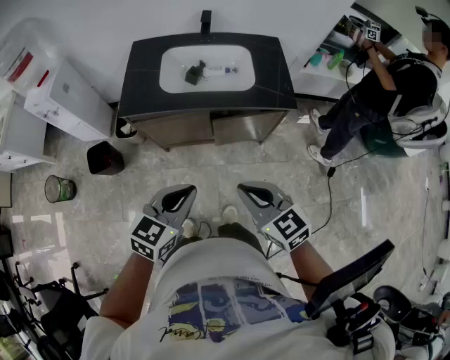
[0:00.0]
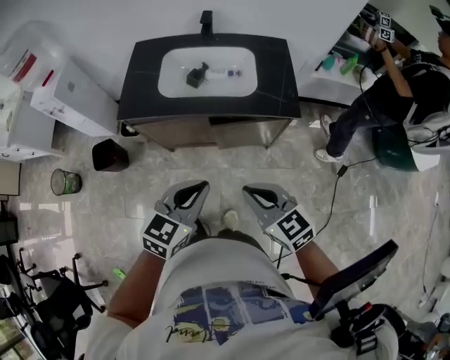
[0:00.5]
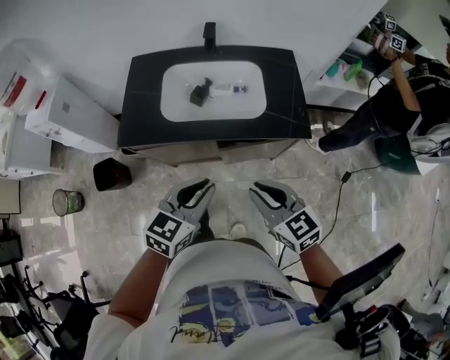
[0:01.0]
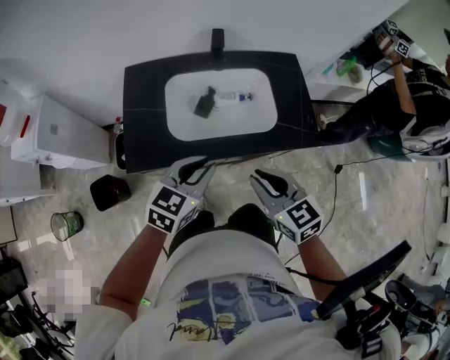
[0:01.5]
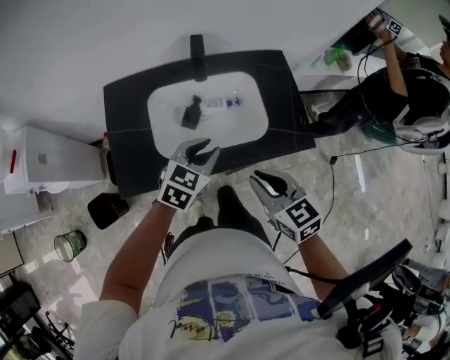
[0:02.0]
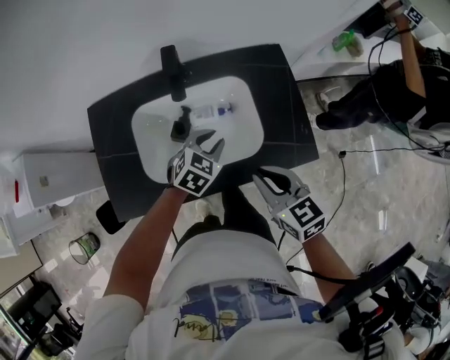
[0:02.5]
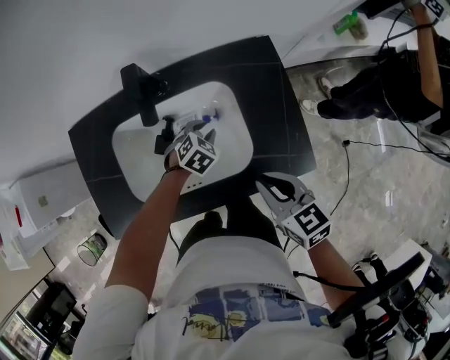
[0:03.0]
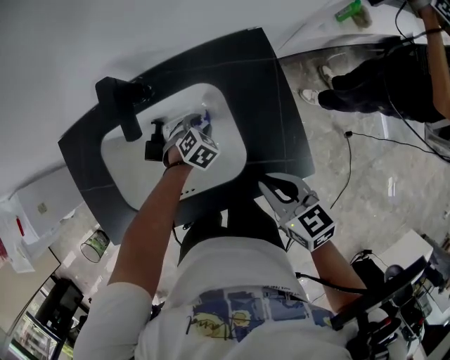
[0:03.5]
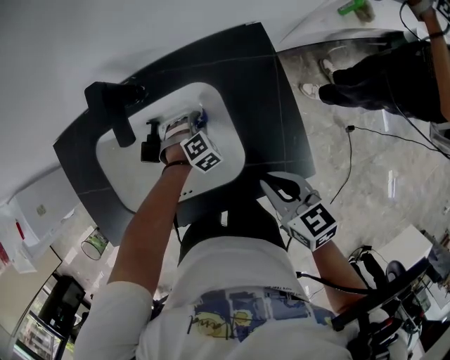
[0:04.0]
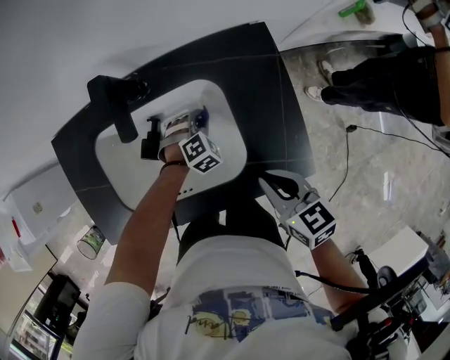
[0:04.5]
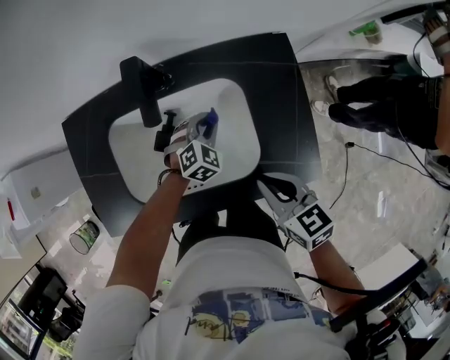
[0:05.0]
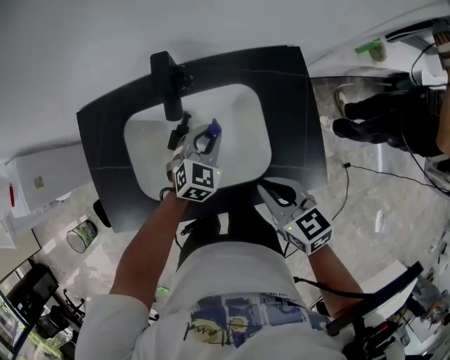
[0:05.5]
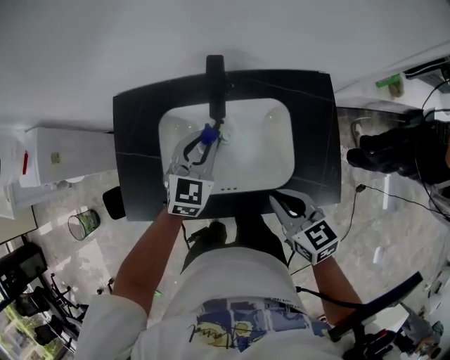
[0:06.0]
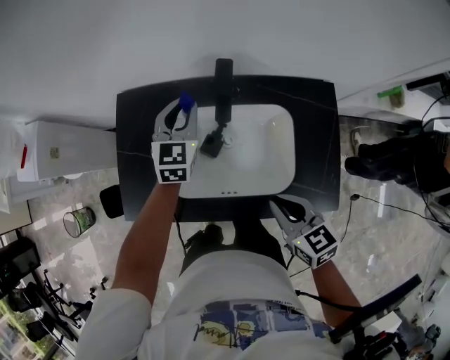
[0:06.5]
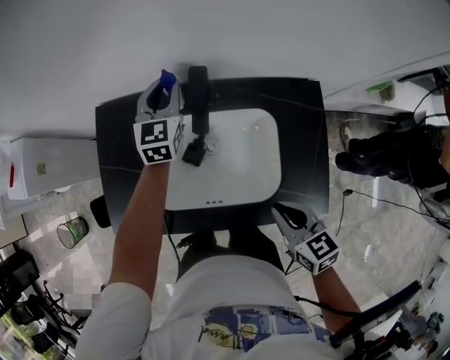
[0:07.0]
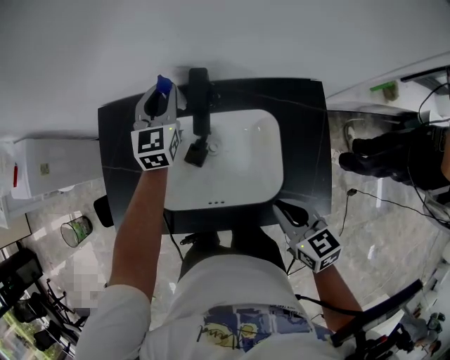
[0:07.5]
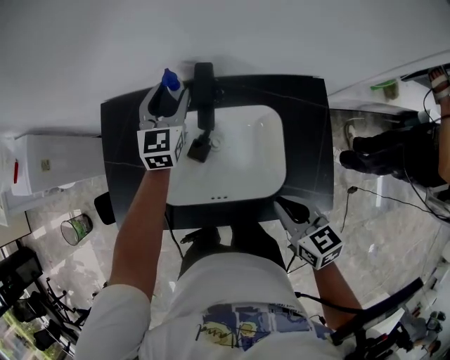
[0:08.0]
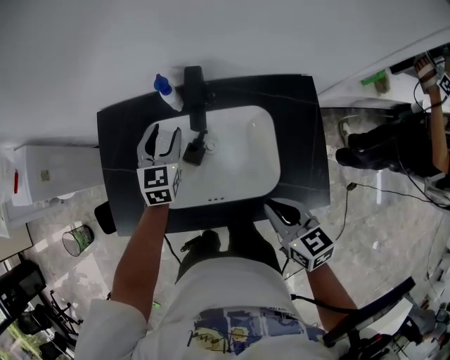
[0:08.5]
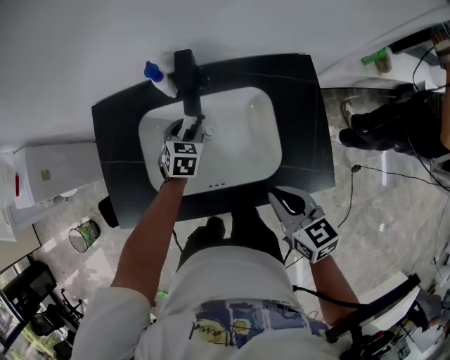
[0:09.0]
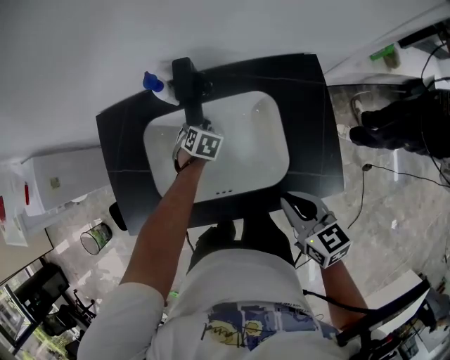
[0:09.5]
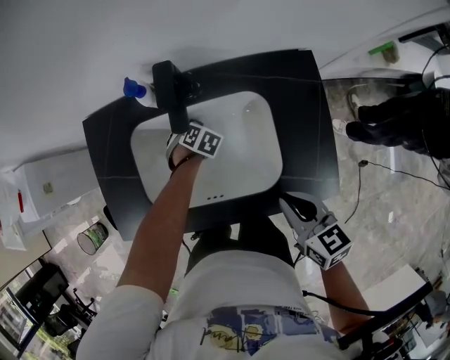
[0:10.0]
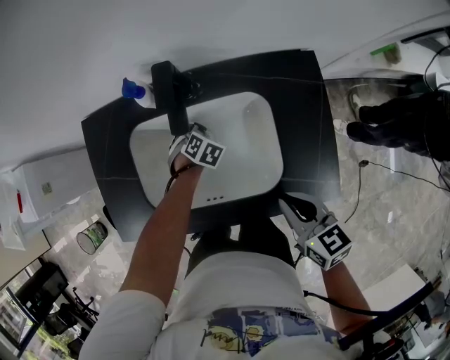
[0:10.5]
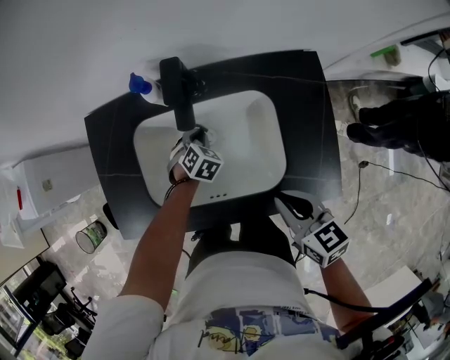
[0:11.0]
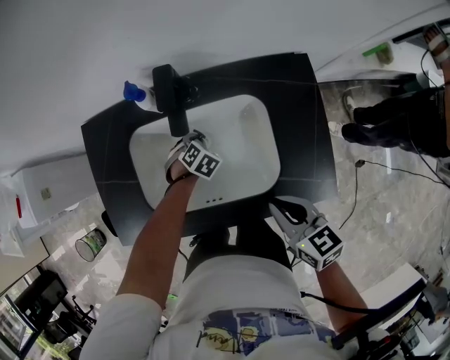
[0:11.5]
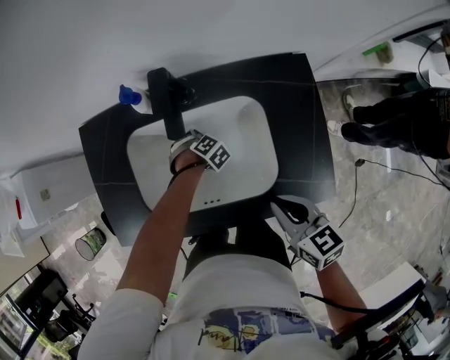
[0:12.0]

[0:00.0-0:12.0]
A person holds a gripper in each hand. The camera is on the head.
0:00.0 to 0:02.0: Both grippers travel together forward, approximately 35 cm. The left gripper opens its fingers, while the right gripper changes its angle by some 20 degrees.
0:02.0 to 0:04.0: The right gripper moves to the right, forward and downward, approximately 25 cm, and rotates some 20 degrees. The left gripper shifts some 40 cm downward, forward and to the right, and angles its fingers downward, by approximately 40 degrees.
0:04.0 to 0:06.0: The right gripper goes about 10 cm to the left; the left gripper travels upward and to the left by approximately 30 cm, and tilts its fingers about 40 degrees upward.
0:06.0 to 0:08.0: The left gripper heads forward, covering approximately 15 cm, and opens its fingers.
0:08.0 to 0:10.0: The left gripper moves downward, roughly 25 cm, and points its fingers about 60 degrees further downward.
0:10.0 to 0:12.0: The left gripper ends up about 5 cm from where it was, and turns by approximately 20 degrees.

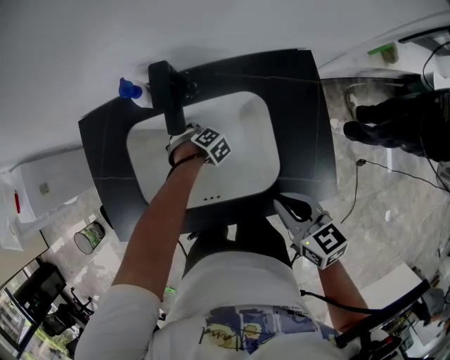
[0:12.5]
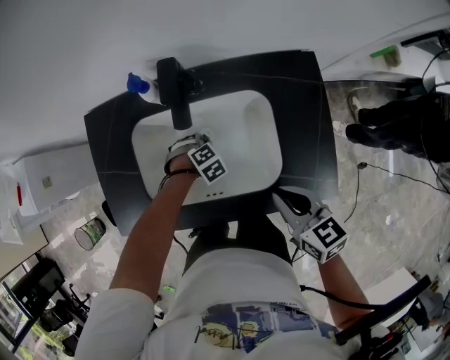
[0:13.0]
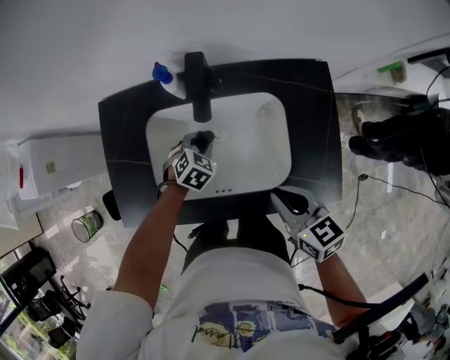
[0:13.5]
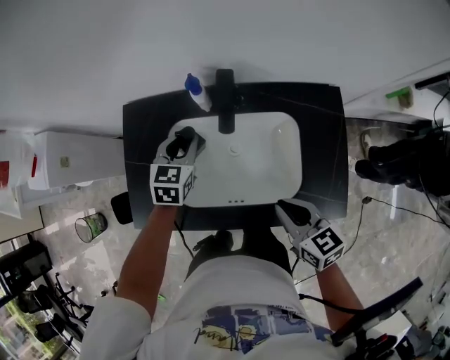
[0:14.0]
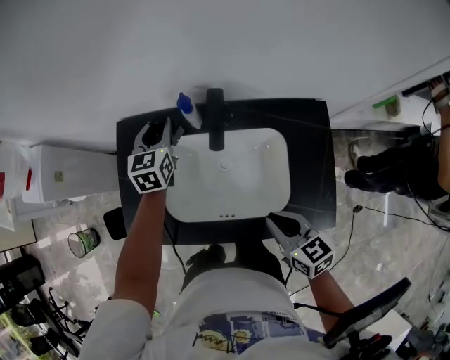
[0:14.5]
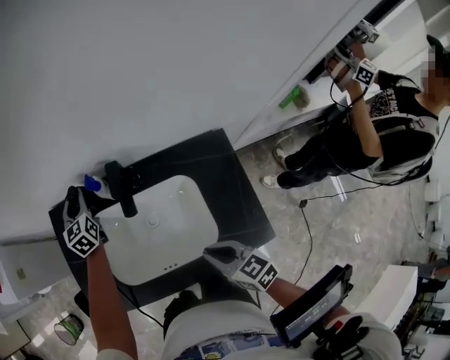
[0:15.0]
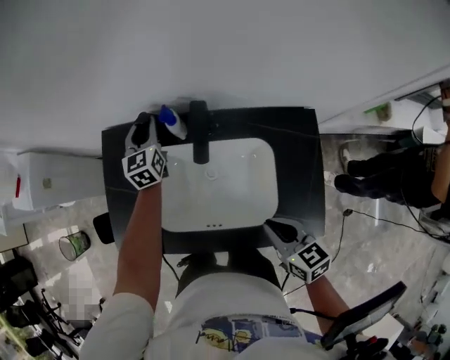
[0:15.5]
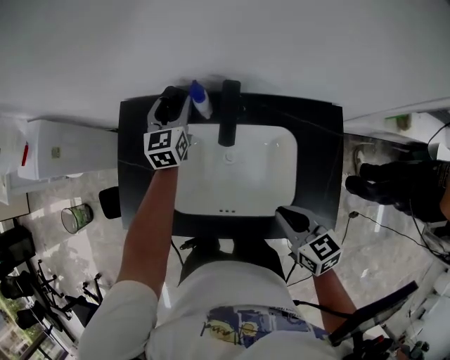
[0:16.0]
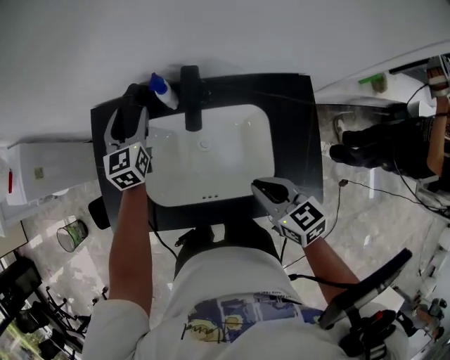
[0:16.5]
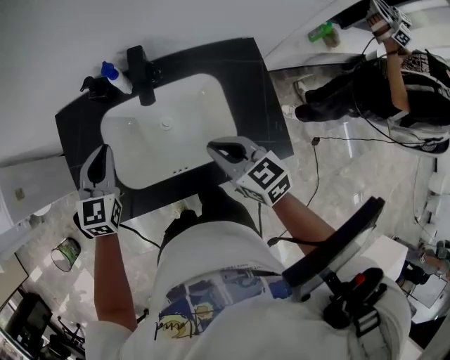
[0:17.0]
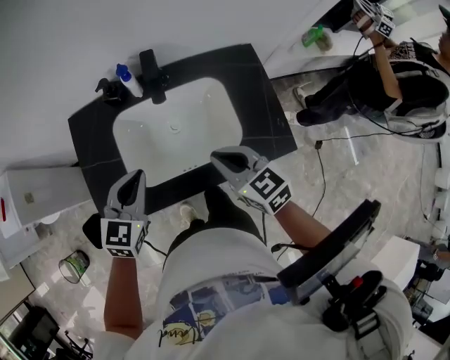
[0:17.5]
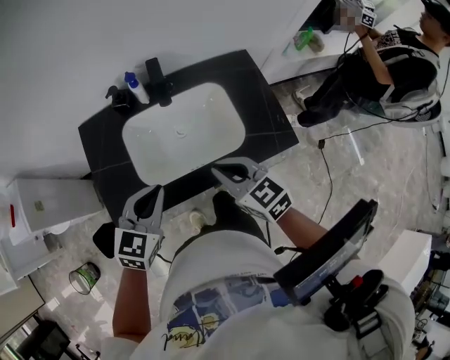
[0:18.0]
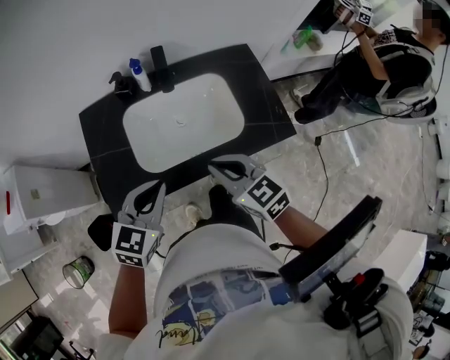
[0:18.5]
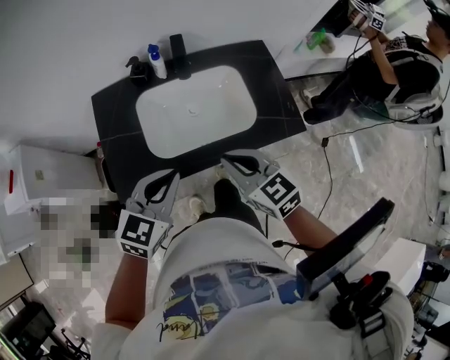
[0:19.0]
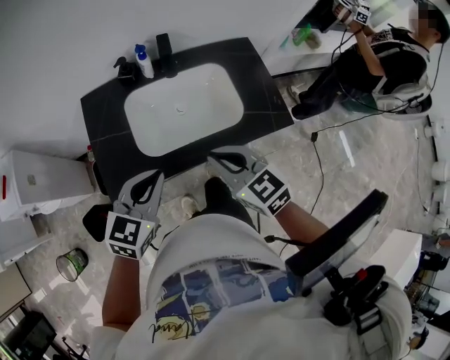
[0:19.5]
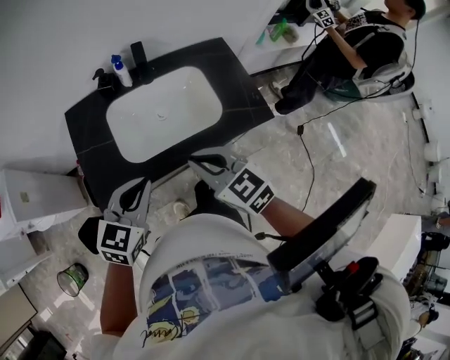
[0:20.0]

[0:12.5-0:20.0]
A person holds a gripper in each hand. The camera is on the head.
0:12.5 to 0:14.5: The left gripper goes about 30 cm upward, tilts its fingers approximately 60 degrees upward, and closes up, while the right gripper moves about 5 cm.
0:14.5 to 0:16.5: The left gripper opens its fingers.
0:16.5 to 0:18.0: The right gripper shifts by about 15 cm; the left gripper shifts by approximately 35 cm, swivels some 40 degrees, and closes up.
0:18.0 to 0:20.0: Both grippers travel together backward, some 10 cm.

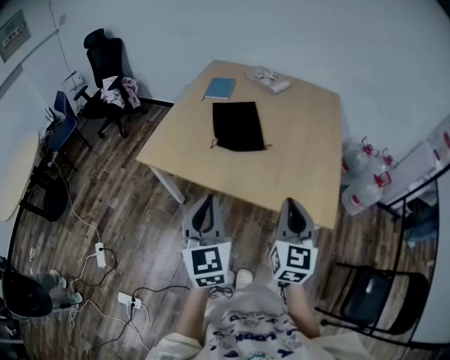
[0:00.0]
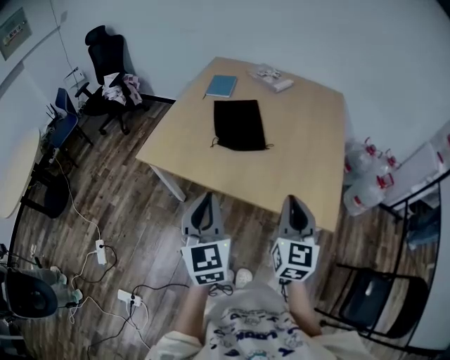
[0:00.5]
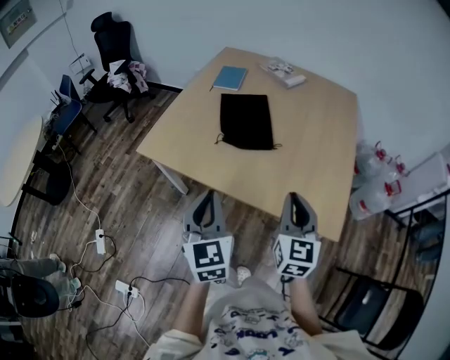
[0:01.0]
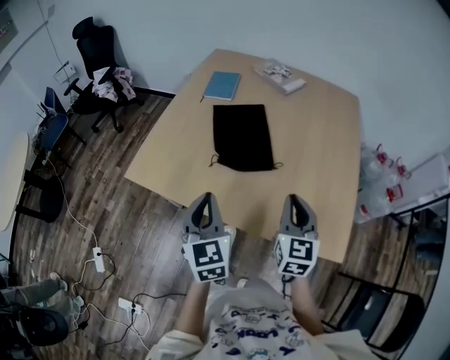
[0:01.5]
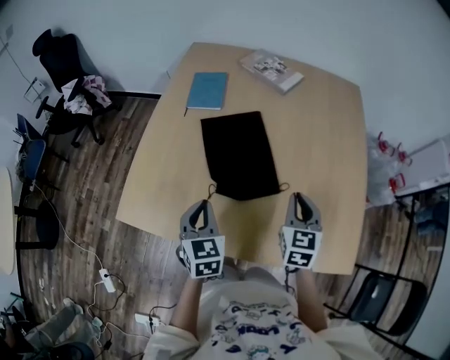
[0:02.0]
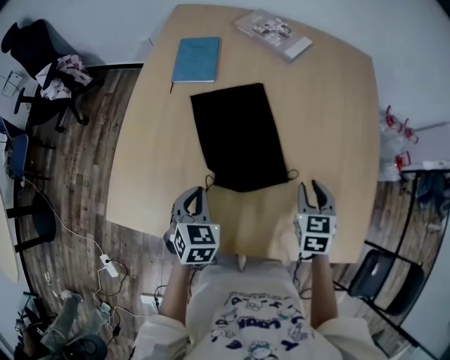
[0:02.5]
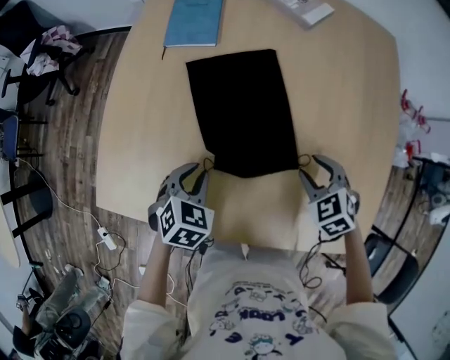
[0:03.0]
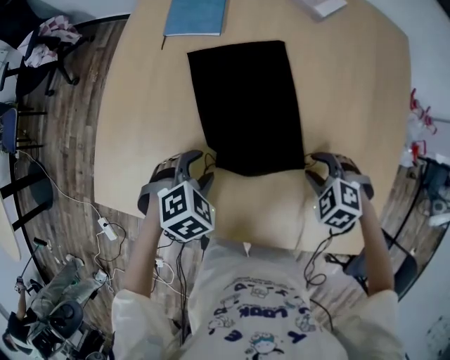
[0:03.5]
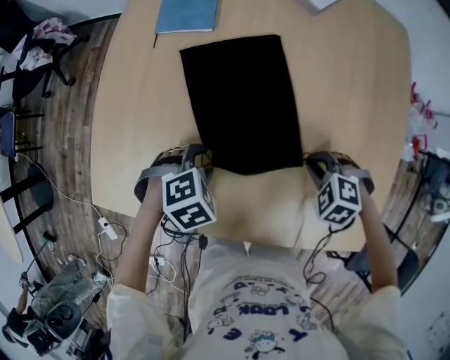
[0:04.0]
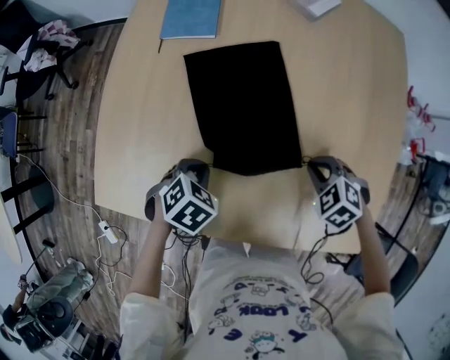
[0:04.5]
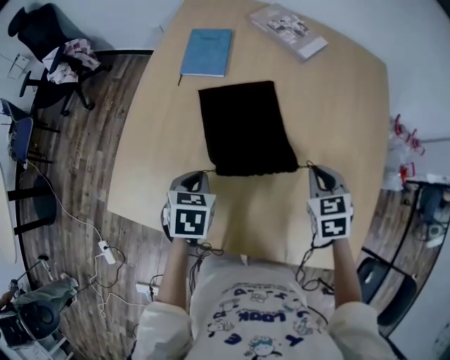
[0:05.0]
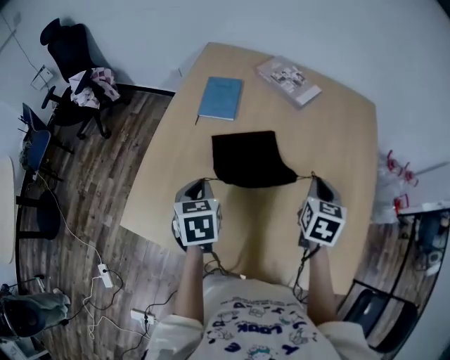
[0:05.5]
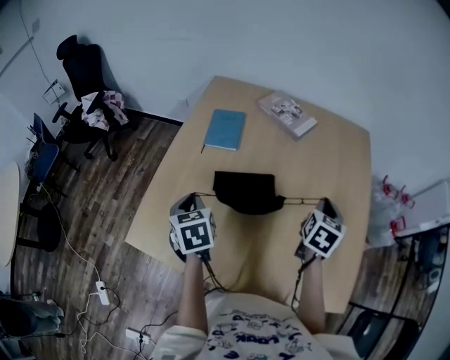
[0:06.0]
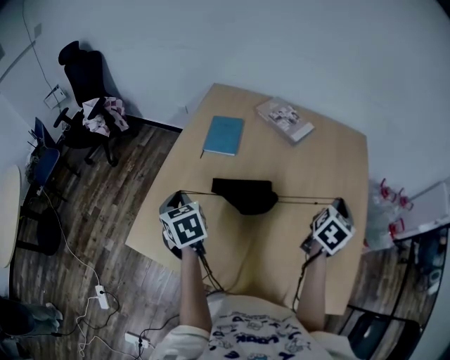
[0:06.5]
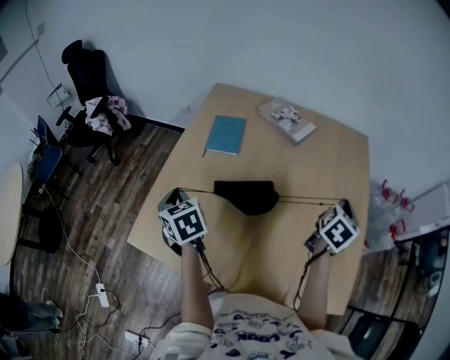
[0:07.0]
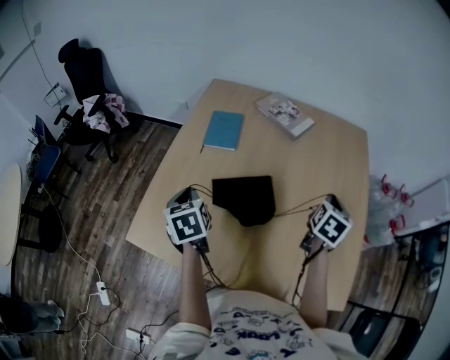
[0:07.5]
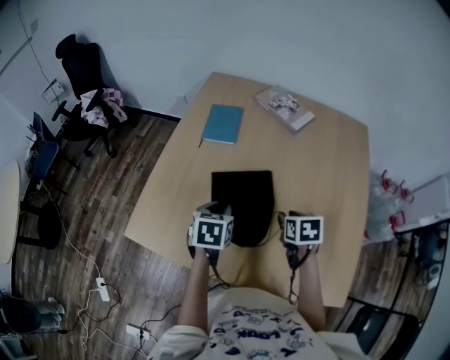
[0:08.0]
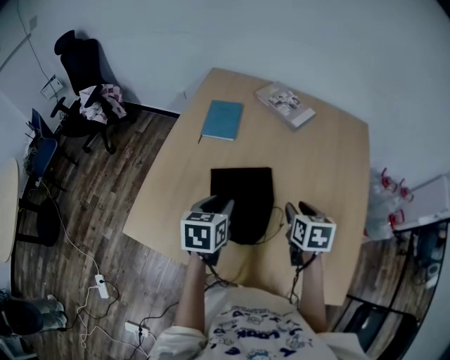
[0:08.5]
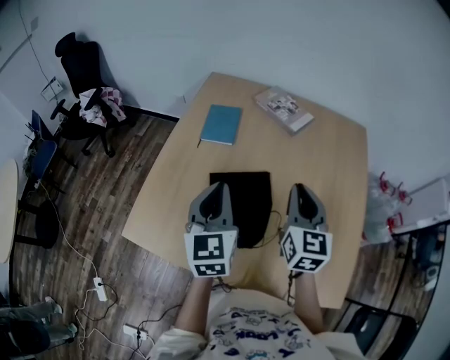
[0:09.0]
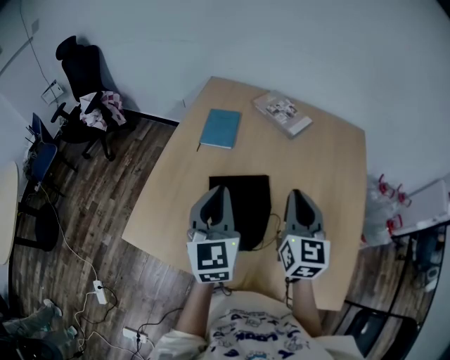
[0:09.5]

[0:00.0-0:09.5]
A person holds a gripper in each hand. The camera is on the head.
0:00.0 to 0:02.0: Both grippers move forward and downward, approximately 35 cm. The left gripper rotates approximately 30 degrees. Meanwhile the right gripper changes its angle by some 20 degrees.
0:02.0 to 0:04.0: Both grippers travel together downward, roughly 15 cm. The left gripper tilts its fingers some 40 degrees downward, and opens its fingers. Meanwhile the right gripper points its fingers approximately 50 degrees further downward, and opens, then closes again.
0:04.0 to 0:05.5: Both grippers move upward, some 20 cm. The right gripper twists about 70 degrees clockwise, seen from behind. The left gripper rotates around the line of its fingers by about 70 degrees, counterclockwise from behind, and closes up.
0:05.5 to 0:07.5: The right gripper travels to the right by about 10 cm, and swivels approximately 20 degrees.
0:07.5 to 0:09.5: The right gripper is displaced to the left and upward by roughly 20 cm, rotates approximately 40 degrees, and opens, then closes again. Meanwhile the left gripper moves upward and to the right, some 15 cm, tilts its fingers roughly 30 degrees upward, and opens and closes again.
